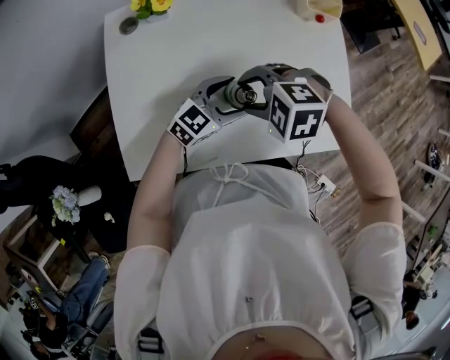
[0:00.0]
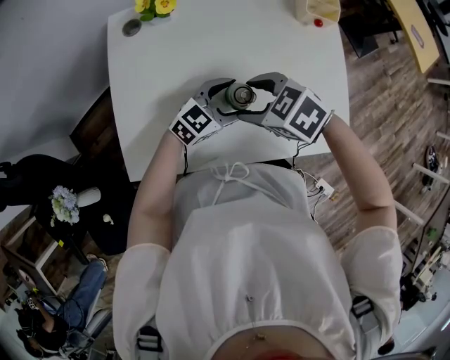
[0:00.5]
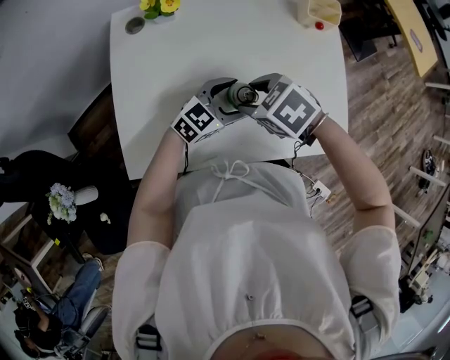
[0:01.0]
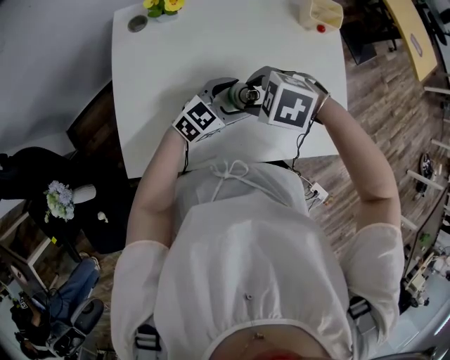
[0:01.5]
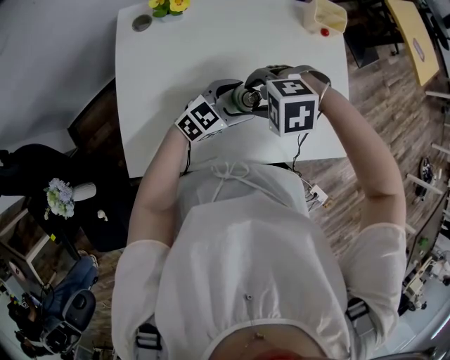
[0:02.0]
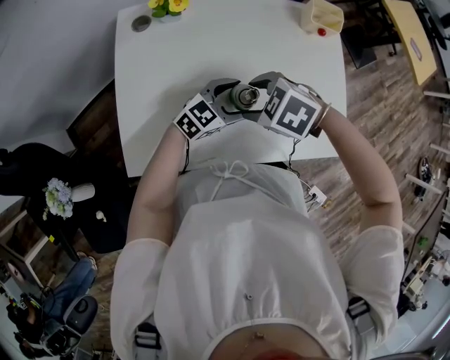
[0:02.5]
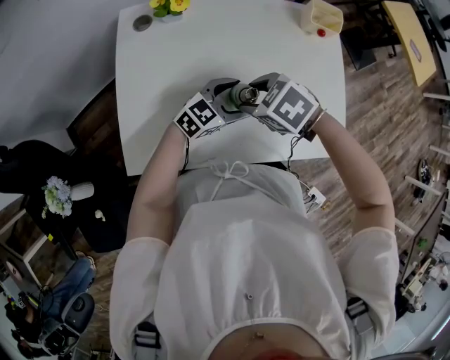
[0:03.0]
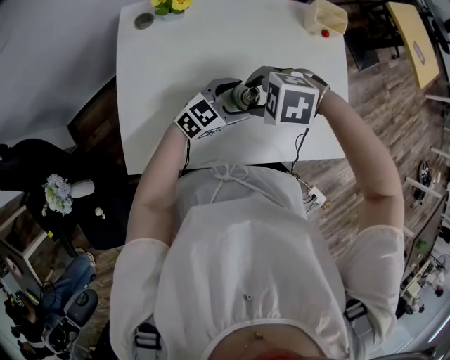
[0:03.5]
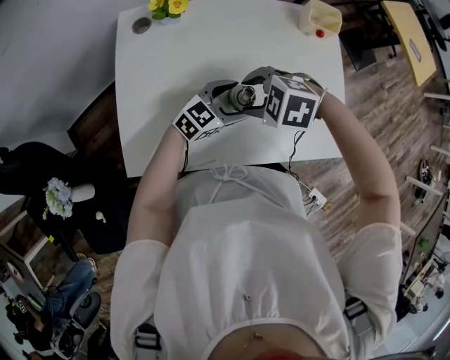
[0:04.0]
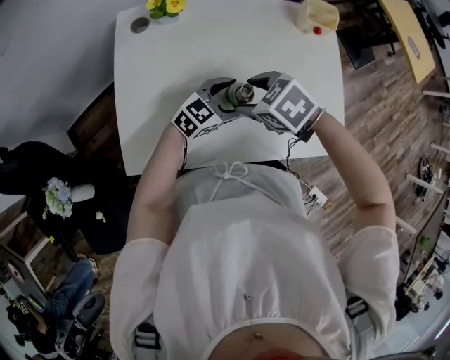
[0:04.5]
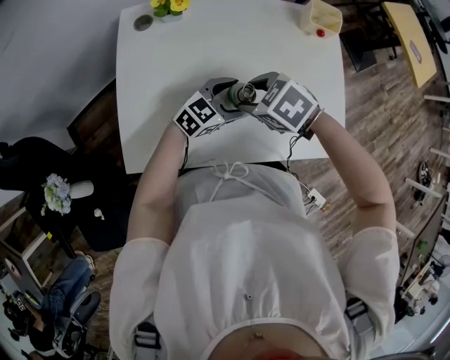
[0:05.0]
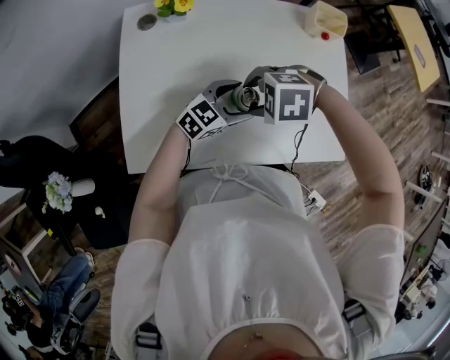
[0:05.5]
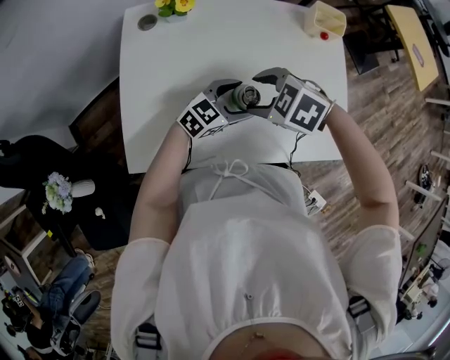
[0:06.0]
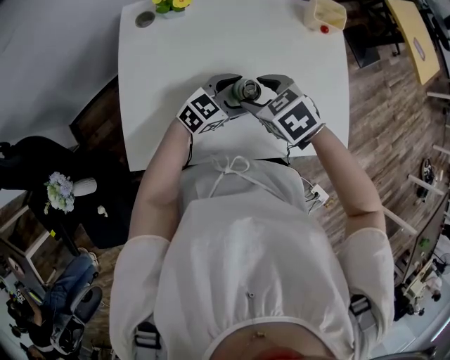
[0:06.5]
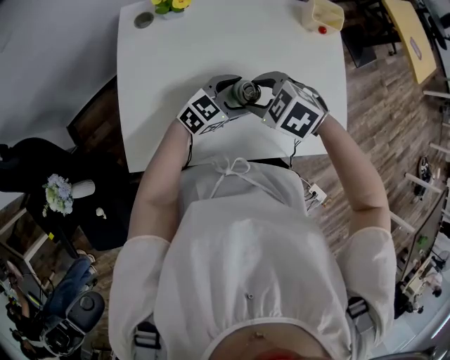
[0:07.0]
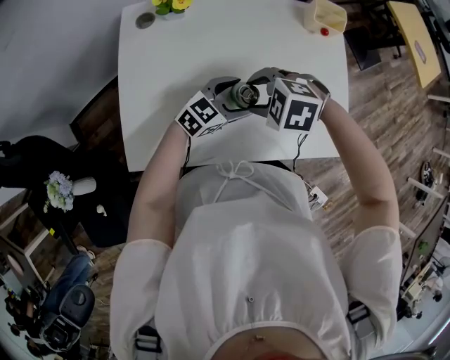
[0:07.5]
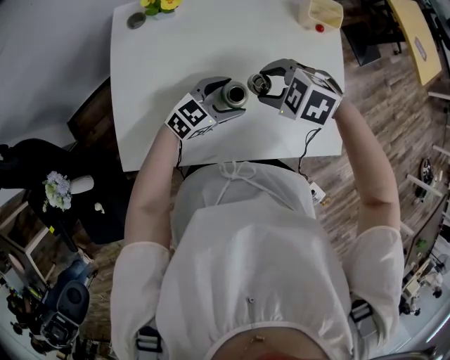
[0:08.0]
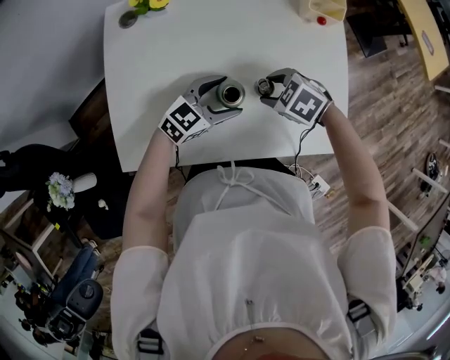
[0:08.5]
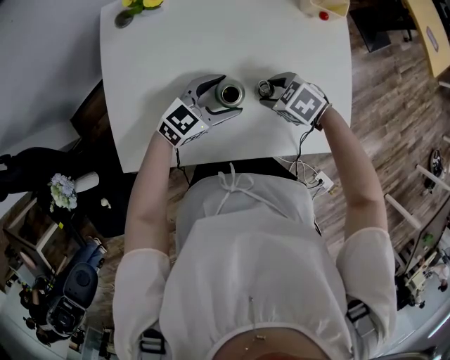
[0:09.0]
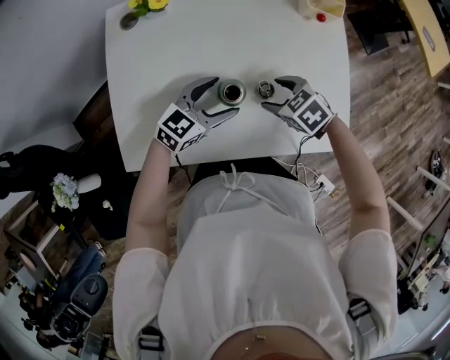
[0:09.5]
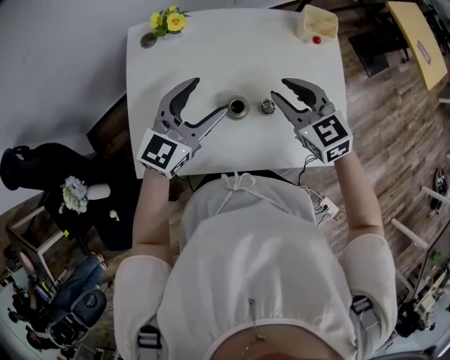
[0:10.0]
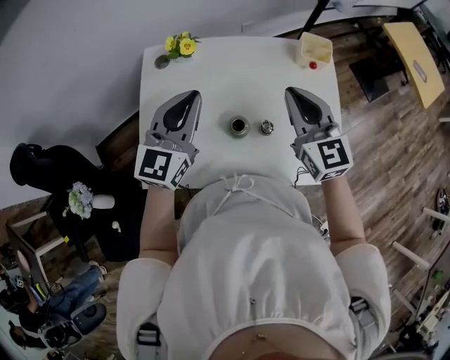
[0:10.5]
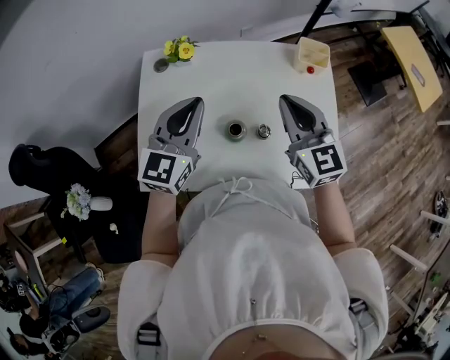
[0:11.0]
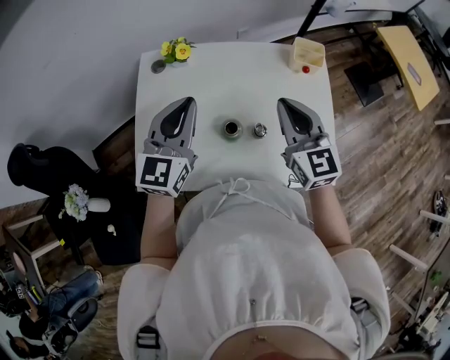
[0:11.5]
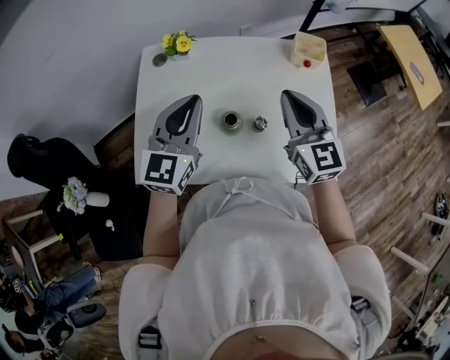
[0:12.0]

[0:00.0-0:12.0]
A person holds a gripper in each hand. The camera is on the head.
0:06.0 to 0:08.0: The right gripper ends up some 5 cm from where it was.
0:08.0 to 0:10.0: The right gripper goes roughly 10 cm upward, and points its fingers approximately 40 degrees further upward; the left gripper shifts roughly 20 cm upward, and rotates about 30 degrees.
0:10.0 to 0:12.0: The grippers both shift upward by approximately 10 cm. The right gripper rotates approximately 30 degrees, and closes up, while the left gripper swivels roughly 20 degrees, and closes up.

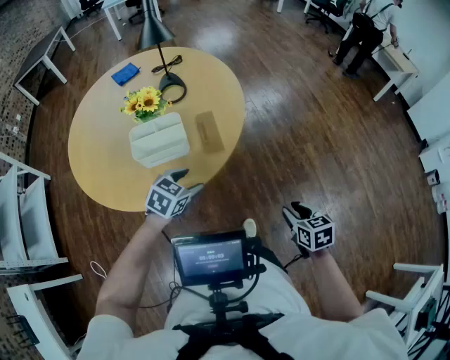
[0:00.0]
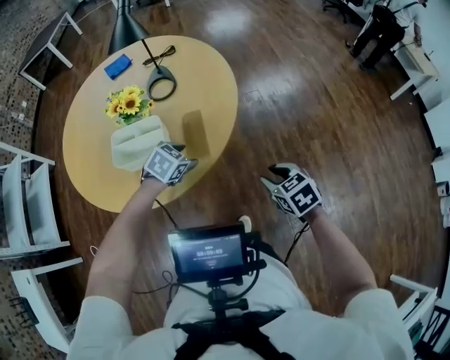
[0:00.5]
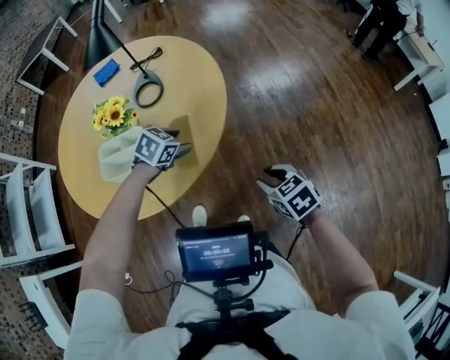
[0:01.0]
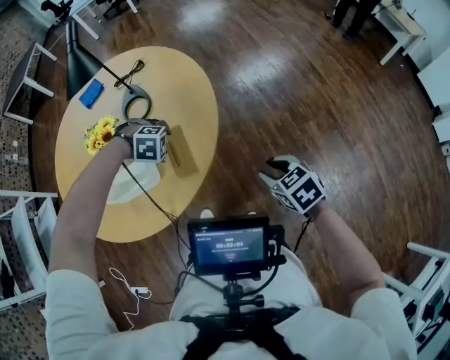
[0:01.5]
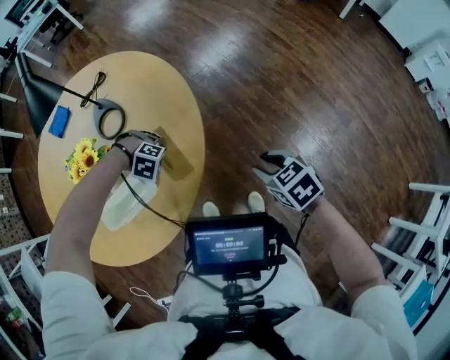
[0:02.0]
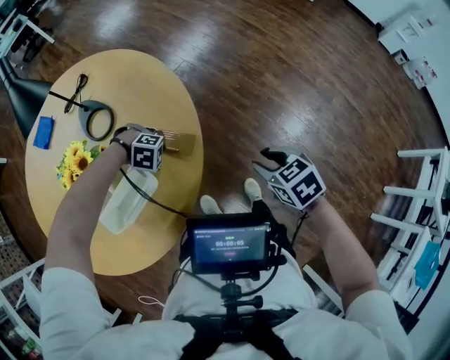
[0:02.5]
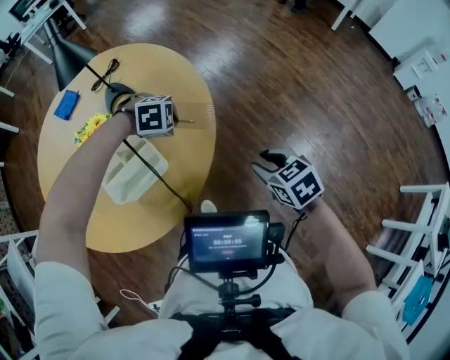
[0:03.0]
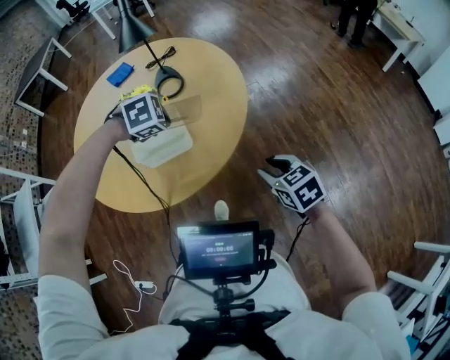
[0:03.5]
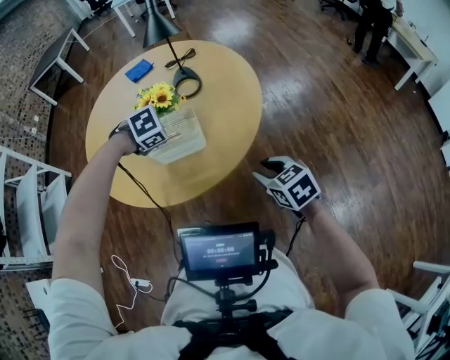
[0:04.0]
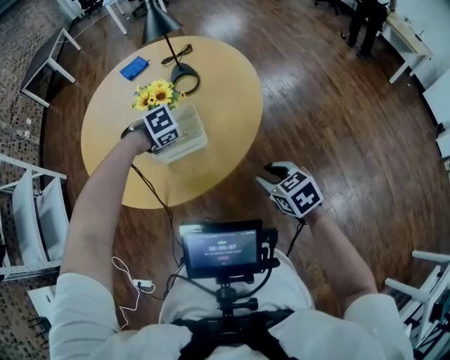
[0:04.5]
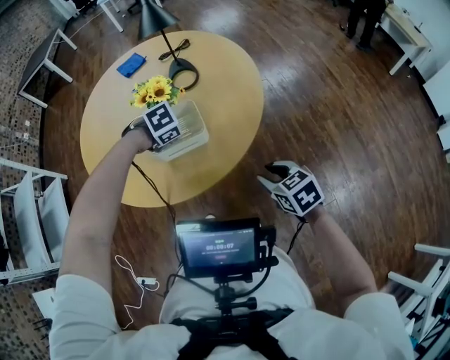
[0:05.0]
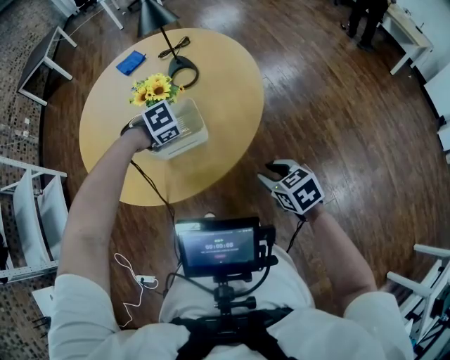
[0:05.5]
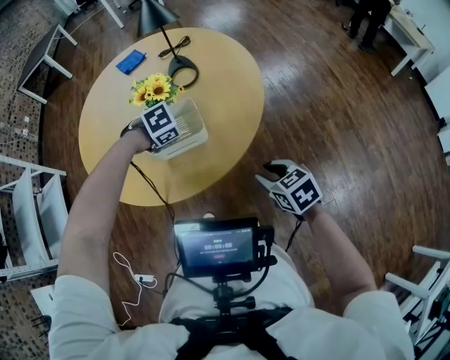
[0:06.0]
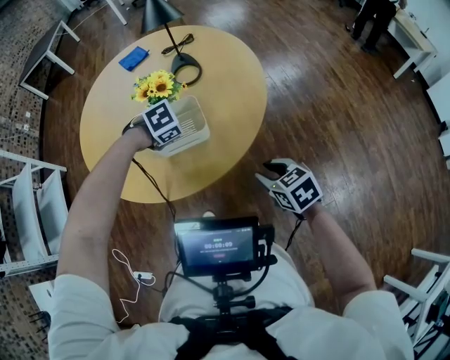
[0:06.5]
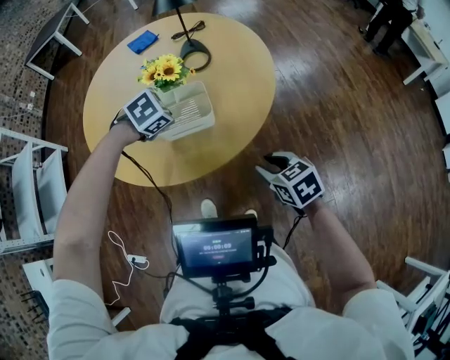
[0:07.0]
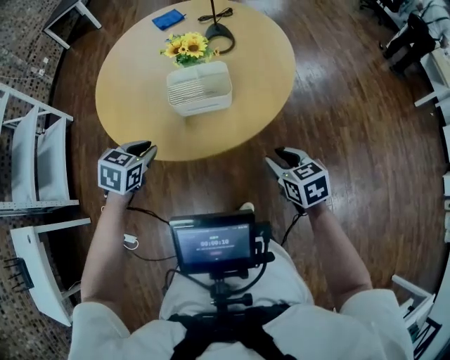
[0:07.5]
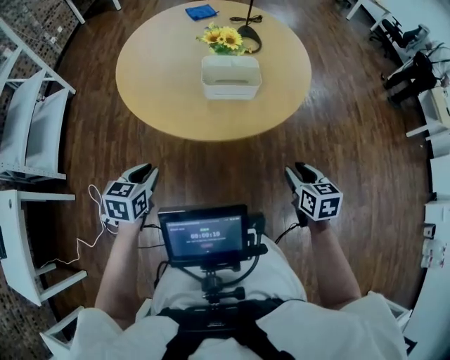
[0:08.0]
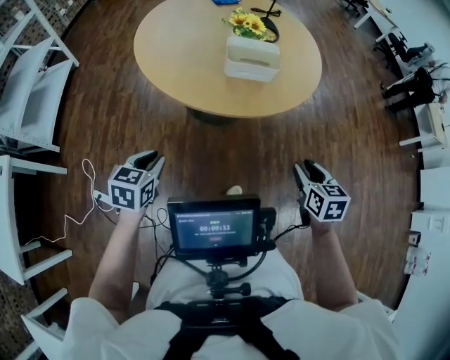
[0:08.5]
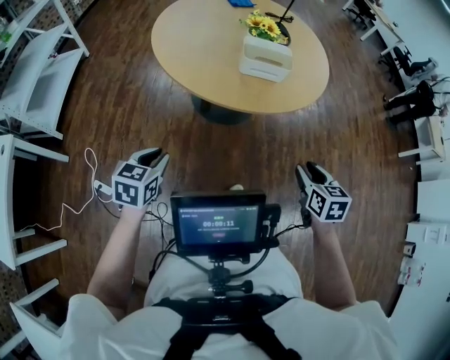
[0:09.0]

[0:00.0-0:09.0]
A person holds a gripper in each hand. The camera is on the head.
0:00.0 to 0:02.0: The right gripper ends up about 20 cm from where it was; the left gripper changes place by roughly 25 cm, and tips its fingers downward by some 50 degrees.
0:02.0 to 0:04.5: The left gripper shifts by approximately 20 cm, twists approximately 70 degrees counterclockwise, seen from behind, and closes up; the right gripper moves approximately 20 cm.
0:04.5 to 0:07.0: The left gripper heads upward, covering some 5 cm.
0:07.0 to 0:09.0: The right gripper shifts roughly 20 cm backward. Meanwhile the left gripper goes about 50 cm backward and to the left, and tilts its fingers some 30 degrees upward.

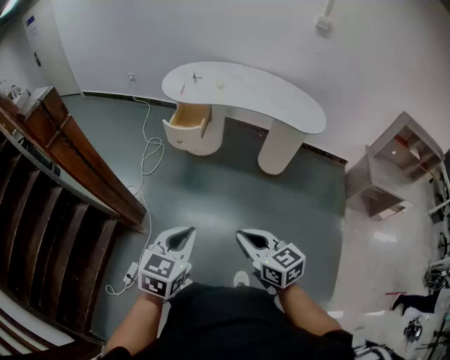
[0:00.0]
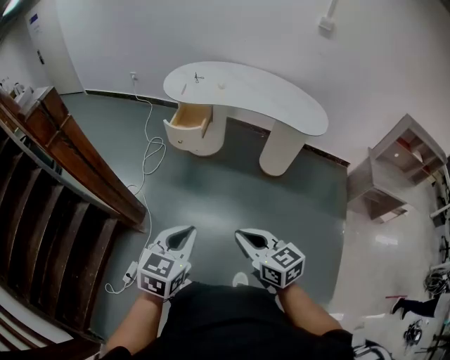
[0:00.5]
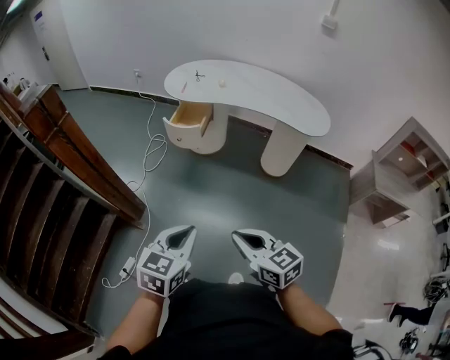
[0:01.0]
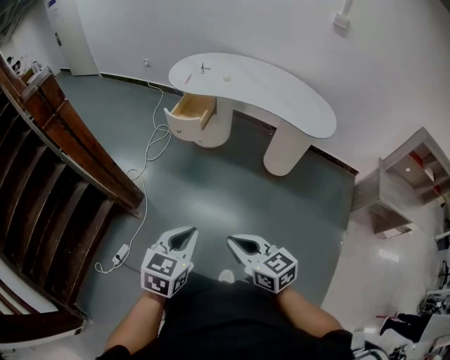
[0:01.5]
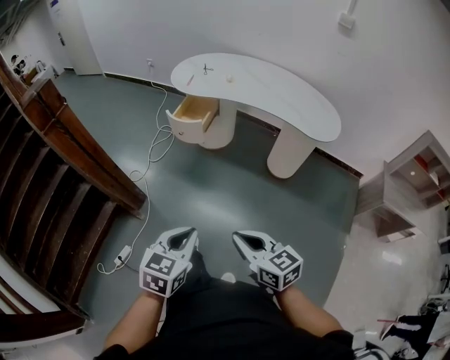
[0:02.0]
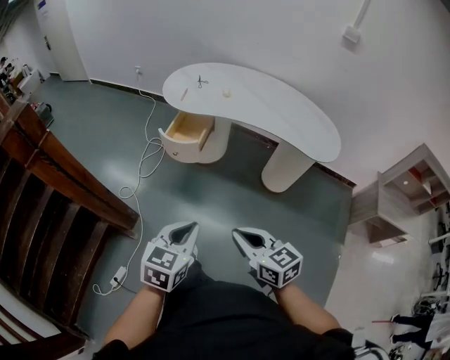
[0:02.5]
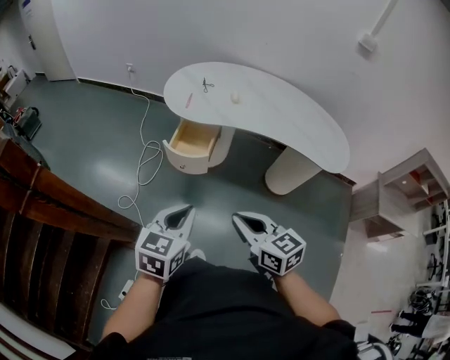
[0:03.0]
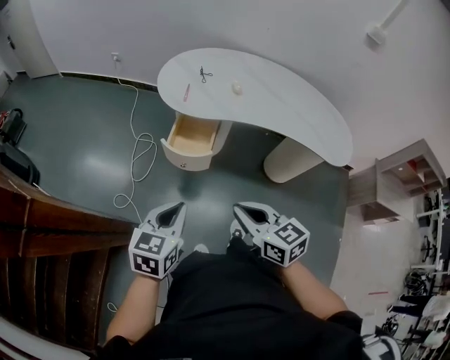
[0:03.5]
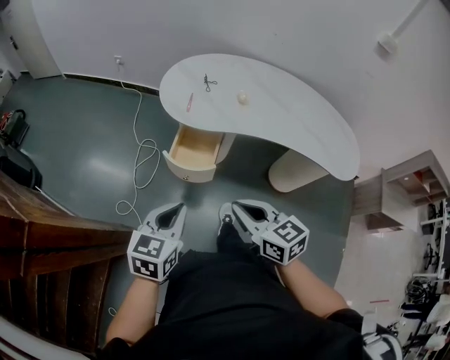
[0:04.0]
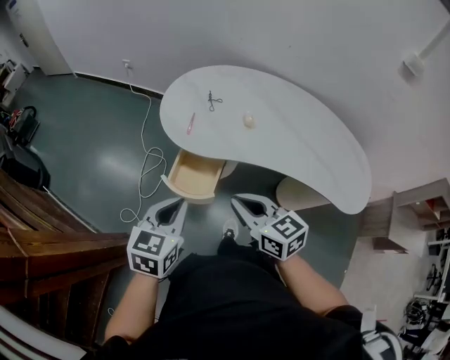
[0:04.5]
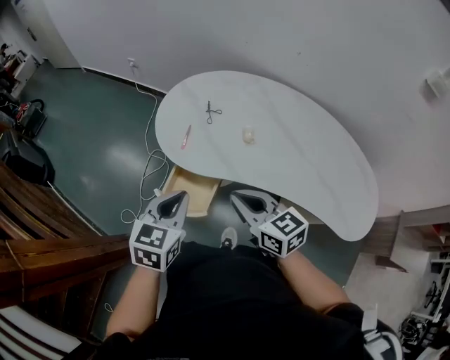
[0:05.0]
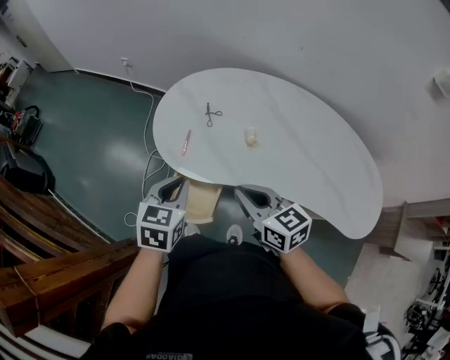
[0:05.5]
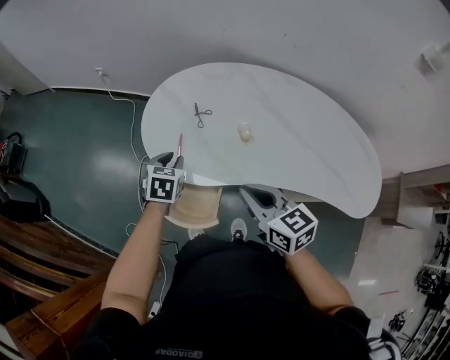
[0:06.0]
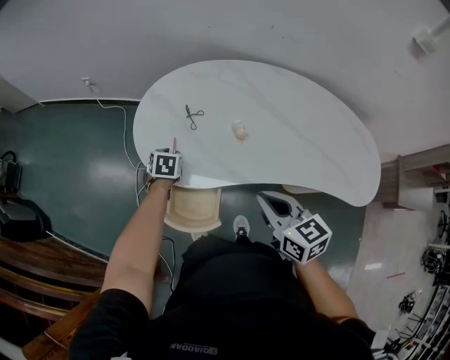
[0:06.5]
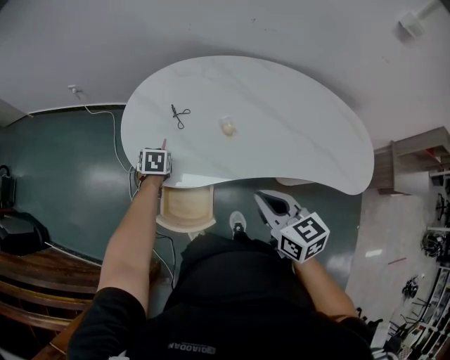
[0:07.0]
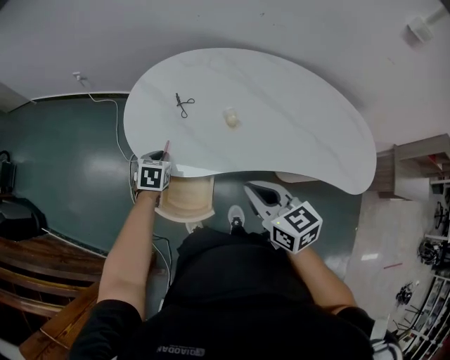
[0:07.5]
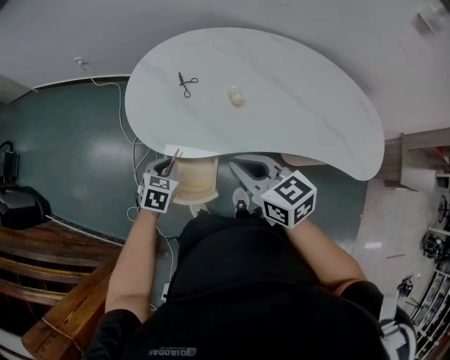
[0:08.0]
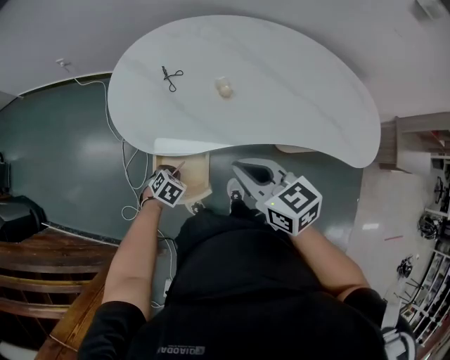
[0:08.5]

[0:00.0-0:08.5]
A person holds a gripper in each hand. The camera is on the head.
0:00.0 to 0:02.0: The two grippers go some 10 cm to the right.
0:02.0 to 0:04.0: The pair of grippers is taken forward, roughly 50 cm.
0:04.0 to 0:06.5: The left gripper travels forward and downward by roughly 60 cm, rotates approximately 30 degrees, and opens its fingers. Meanwhile the right gripper is displaced forward and to the right by some 30 cm.
0:06.5 to 0:08.5: The left gripper shifts some 25 cm backward and downward, and swivels roughly 40 degrees.
